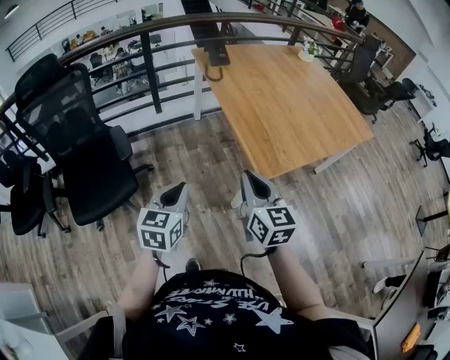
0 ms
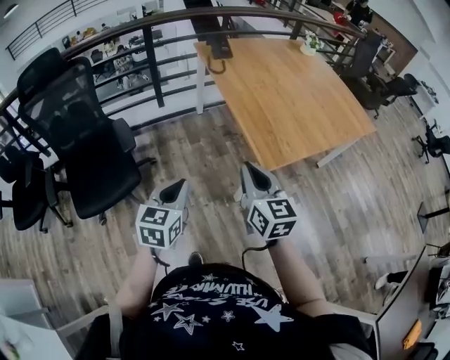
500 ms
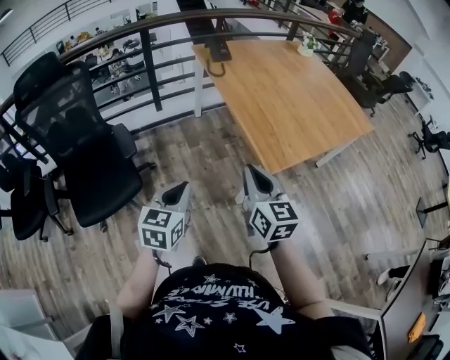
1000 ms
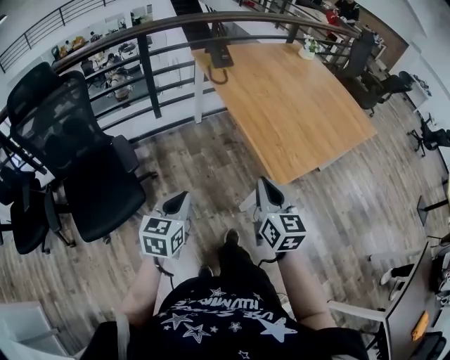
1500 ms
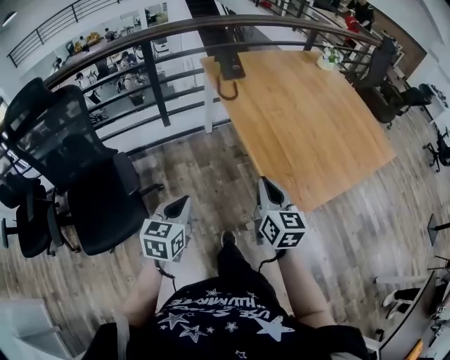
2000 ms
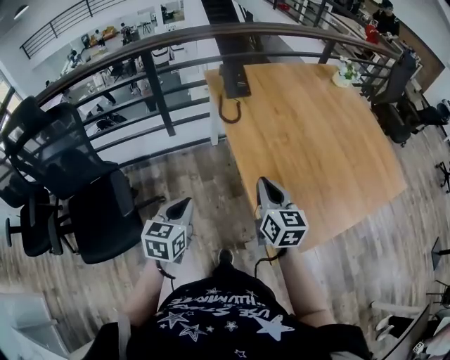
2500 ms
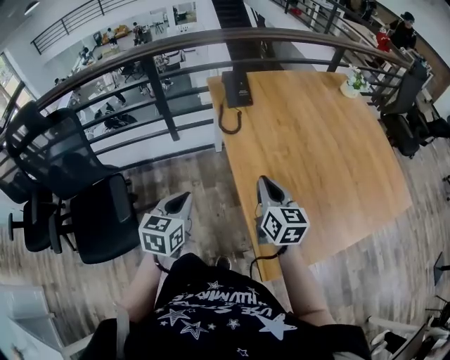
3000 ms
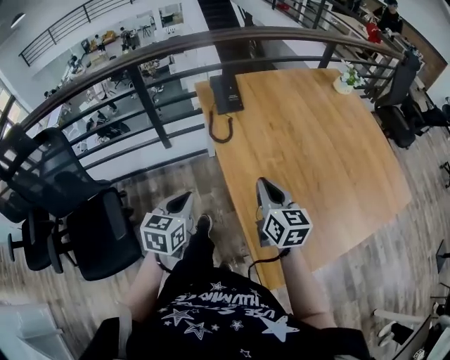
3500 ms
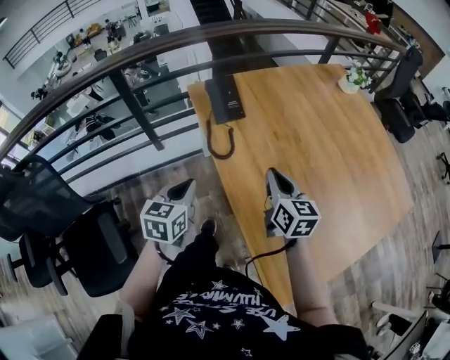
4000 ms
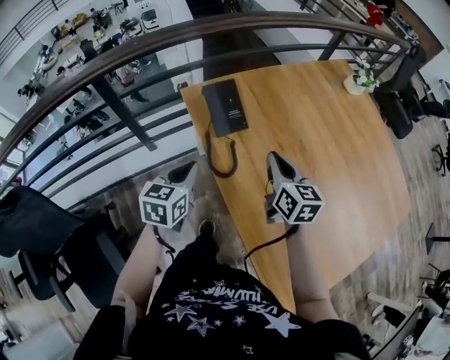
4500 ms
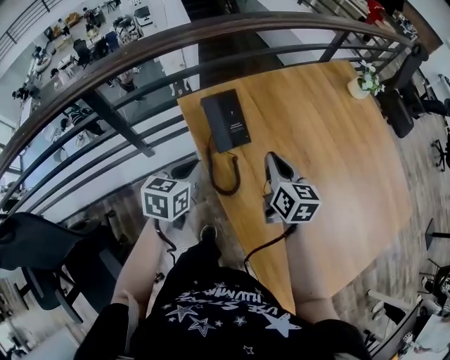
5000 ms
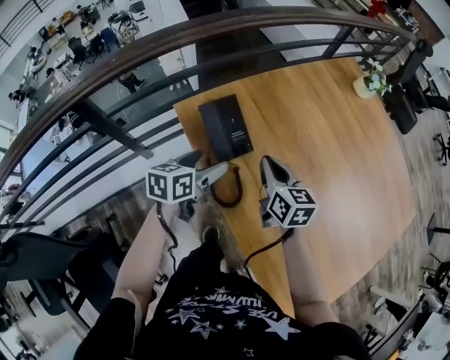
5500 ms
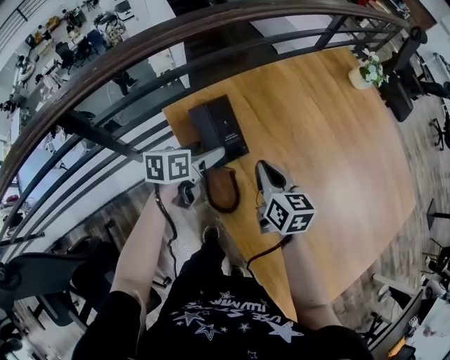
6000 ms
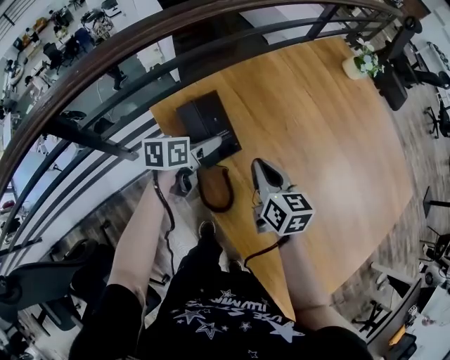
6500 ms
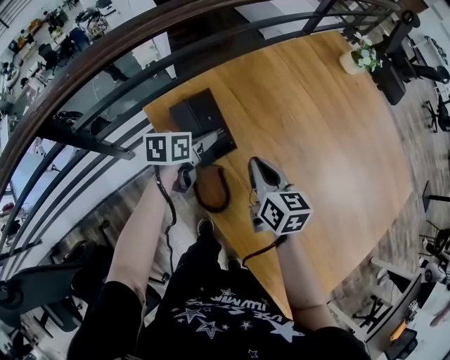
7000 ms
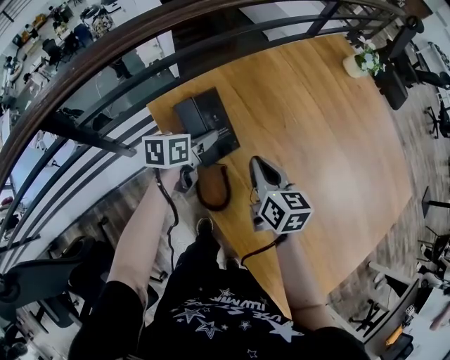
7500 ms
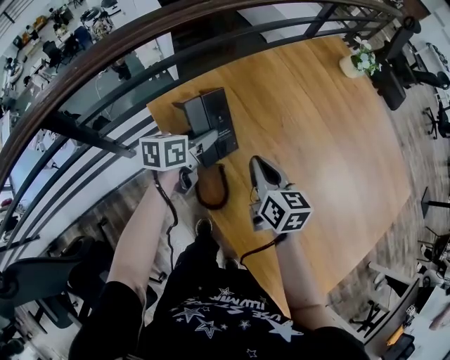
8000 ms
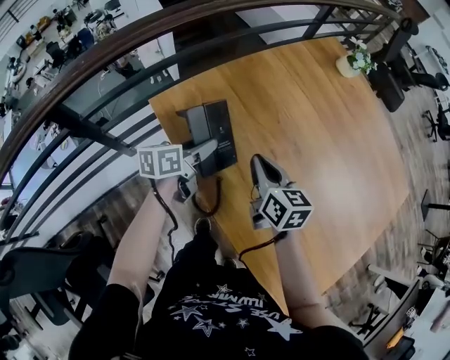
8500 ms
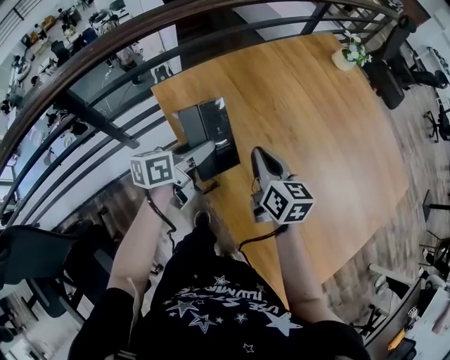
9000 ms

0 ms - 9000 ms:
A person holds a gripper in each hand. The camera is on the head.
0 ms - 2000 ms: The grippers both shift forward by approximately 15 cm.
2000 ms - 4500 ms: The pair of grippers is taken forward, approximately 50 cm.
4500 ms - 7000 ms: The right gripper shifts about 10 cm forward and downward. Meanwhile the left gripper is displaced forward and downward by approximately 25 cm, rotates some 30 degrees, and opens.
7000 ms - 9000 ms: The right gripper moves backward, roughly 5 cm. Meanwhile the left gripper travels backward and upward by roughly 15 cm, and rotates about 20 degrees.

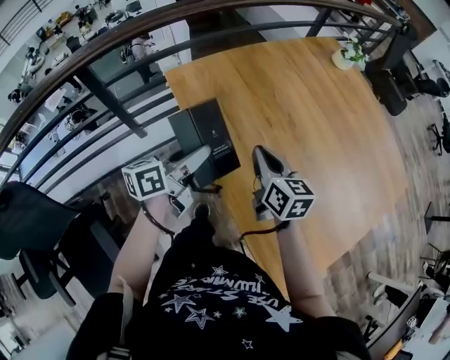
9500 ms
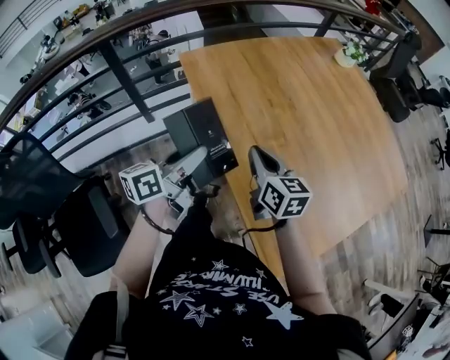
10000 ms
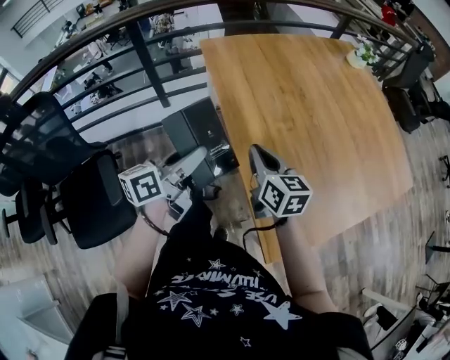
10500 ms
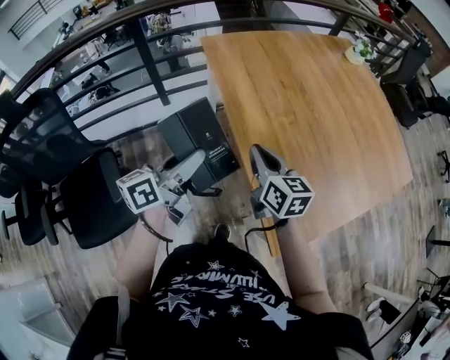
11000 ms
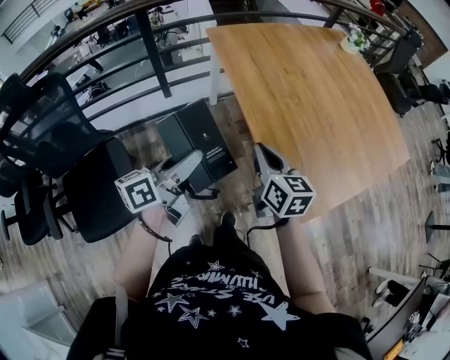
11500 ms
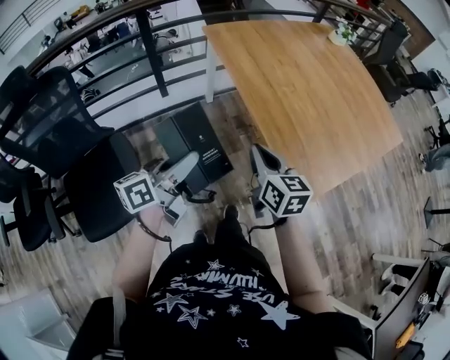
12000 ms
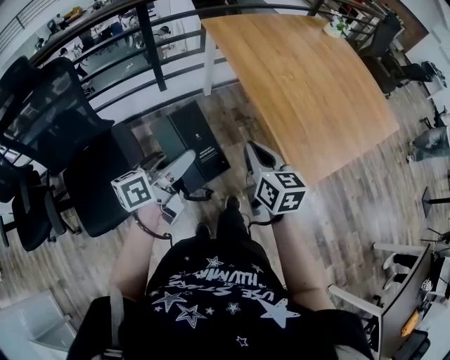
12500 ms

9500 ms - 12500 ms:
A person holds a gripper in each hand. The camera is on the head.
9500 ms - 11000 ms: Both grippers move backward, roughly 25 cm.
11000 ms - 12500 ms: Both grippers move backward, about 20 cm.

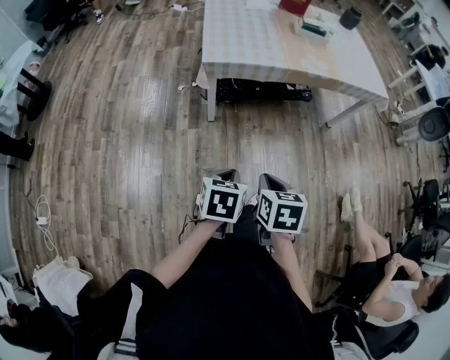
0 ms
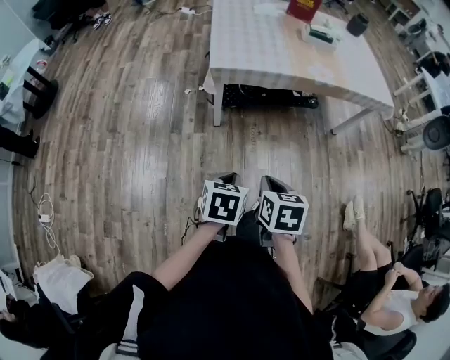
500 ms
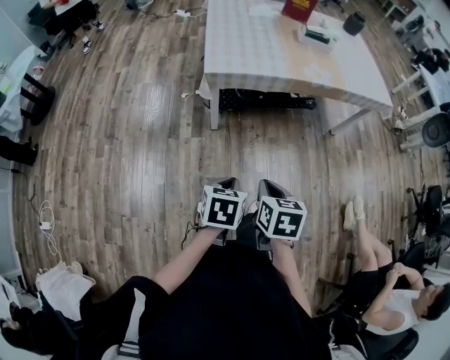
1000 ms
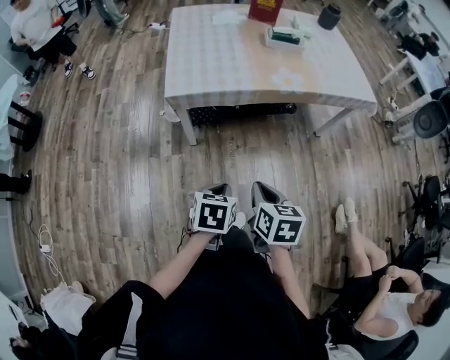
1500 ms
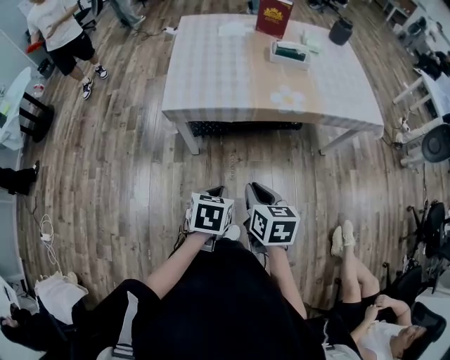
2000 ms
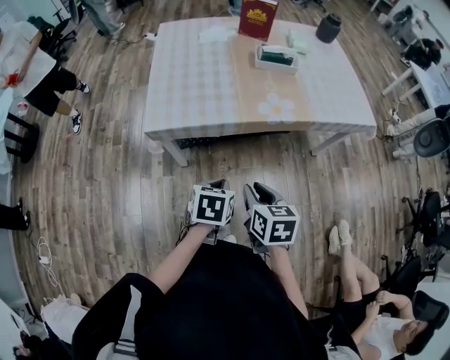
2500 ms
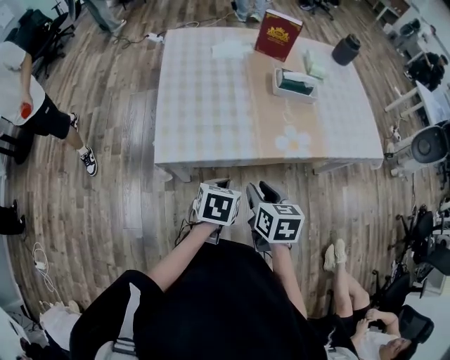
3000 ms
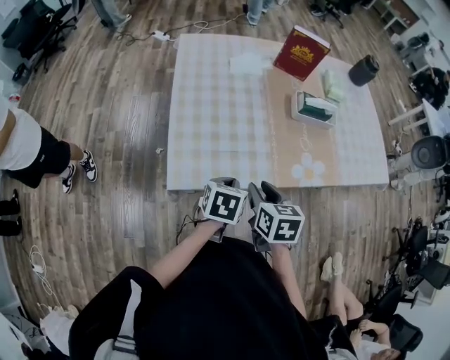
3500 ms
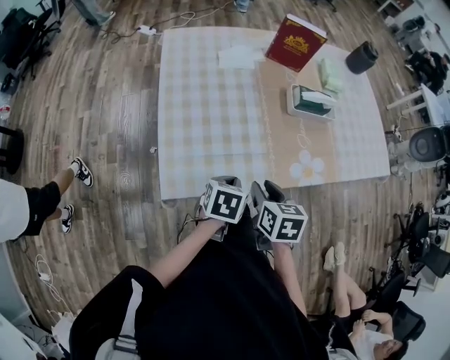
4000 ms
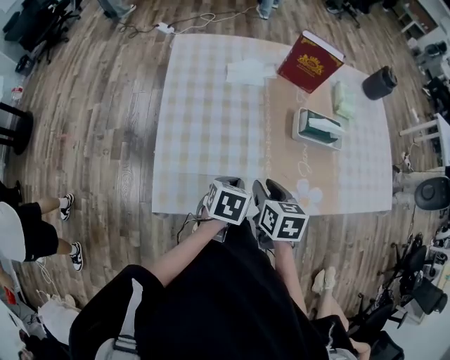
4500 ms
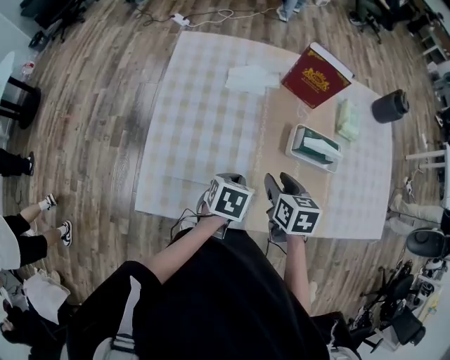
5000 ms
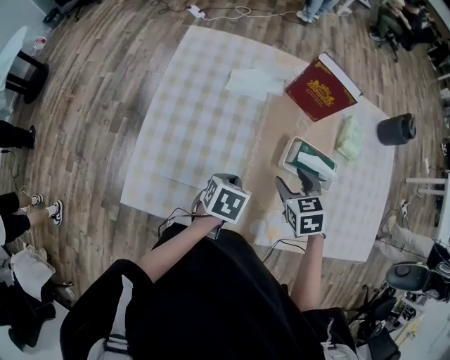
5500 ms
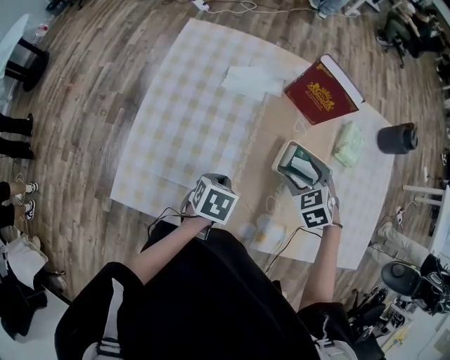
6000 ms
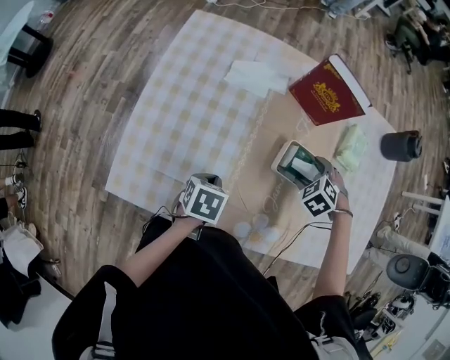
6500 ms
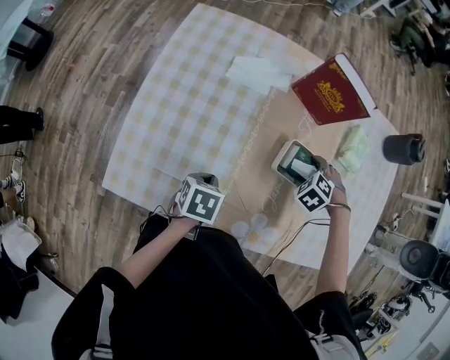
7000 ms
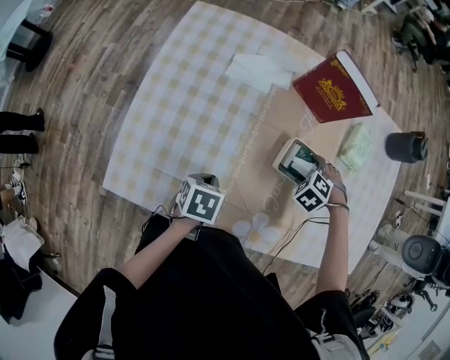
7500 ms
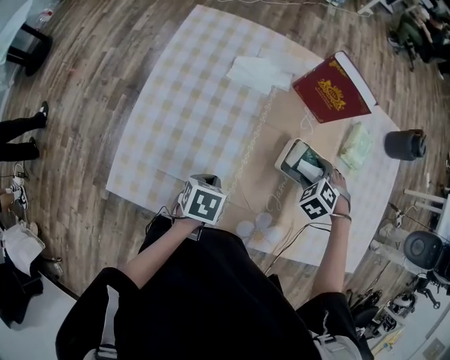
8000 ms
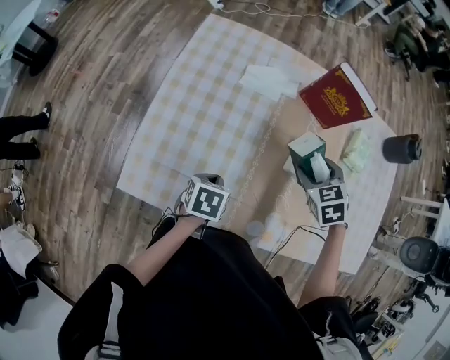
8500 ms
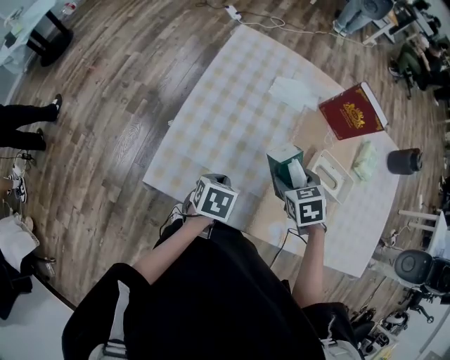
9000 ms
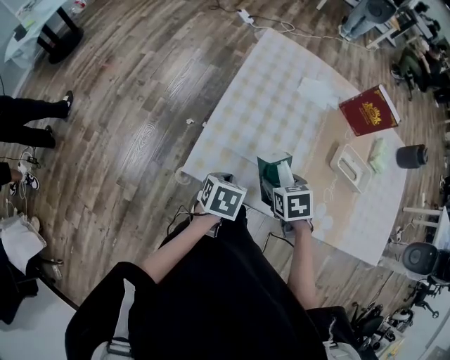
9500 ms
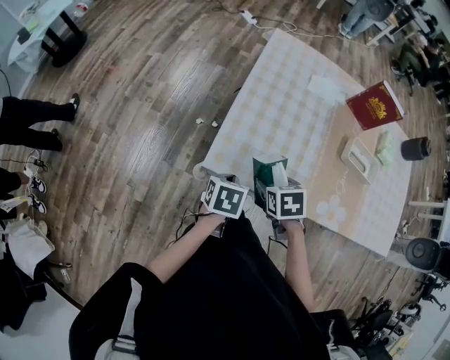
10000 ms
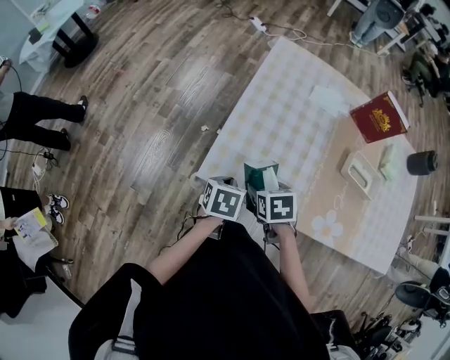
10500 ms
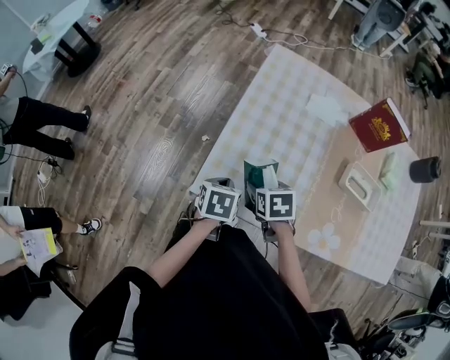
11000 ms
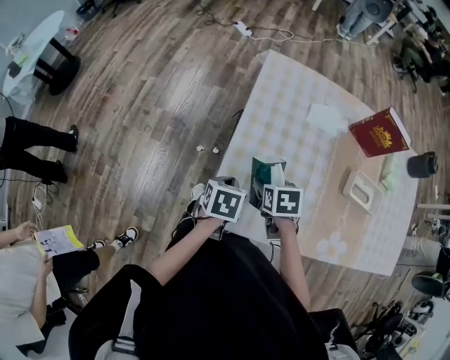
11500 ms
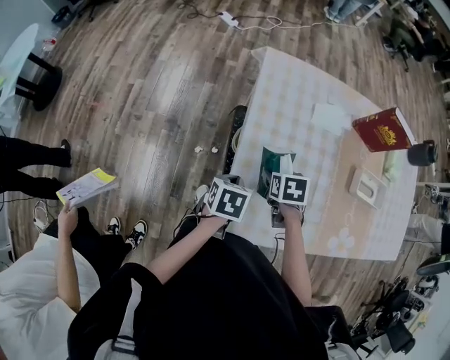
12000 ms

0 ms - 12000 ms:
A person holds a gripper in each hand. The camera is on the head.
0 ms - 2000 ms: Both grippers travel together forward and to the right, roughly 25 cm.
2000 ms - 4000 ms: Both grippers travel together forward, approximately 40 cm.
4000 ms - 6000 ms: The left gripper moves forward and to the right, some 20 cm. Meanwhile the right gripper travels forward and to the right by about 35 cm, rolls counterclockwise, seen from behind, by some 70 degrees, and opens.
6000 ms - 8000 ms: The right gripper shifts roughly 5 cm downward, and rotates approximately 20 degrees.
8000 ms - 10000 ms: The right gripper moves about 50 cm, and rolls clockwise, seen from behind, by roughly 40 degrees. The left gripper changes place by some 30 cm.
10000 ms - 12000 ms: The right gripper ends up roughly 25 cm from where it was, and turns by roughly 20 degrees. Meanwhile the left gripper moves roughly 25 cm.

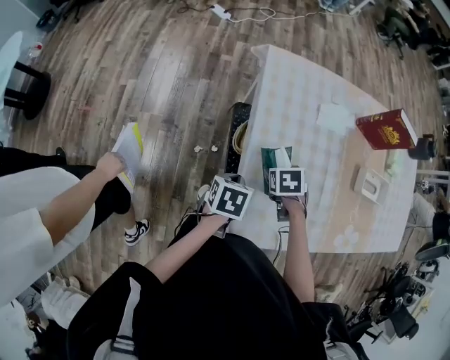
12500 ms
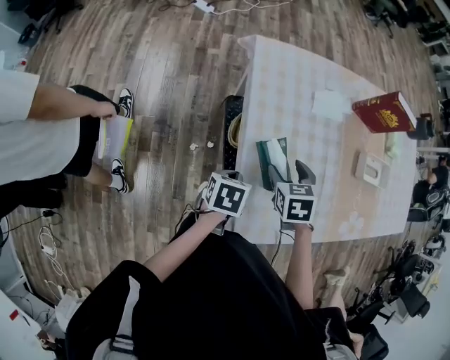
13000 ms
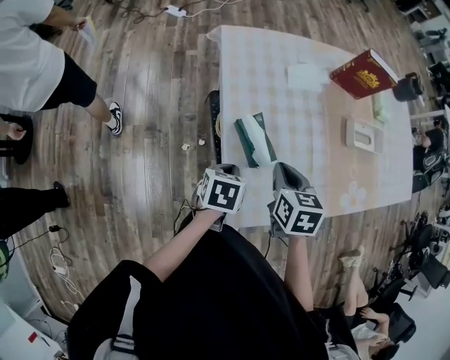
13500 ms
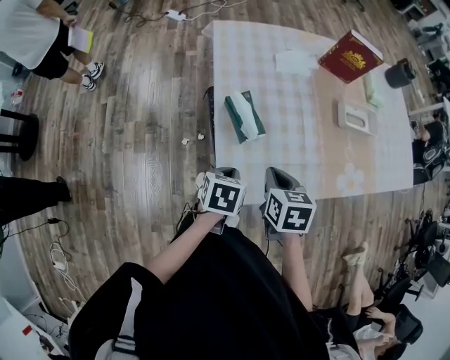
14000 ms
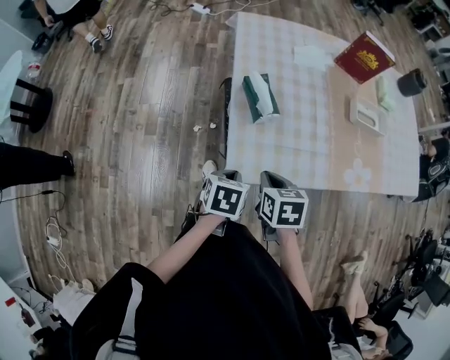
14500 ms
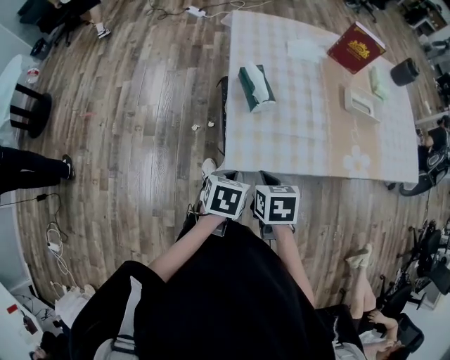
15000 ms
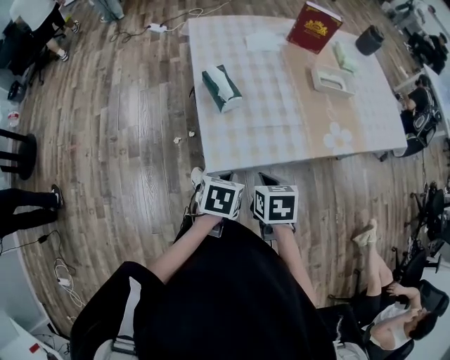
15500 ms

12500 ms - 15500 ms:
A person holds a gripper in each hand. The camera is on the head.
12500 ms - 14000 ms: The right gripper moves roughly 20 cm, turns by roughly 30 degrees, and closes its fingers. The left gripper shifts by about 15 cm.
14000 ms - 15500 ms: The right gripper moves backward, approximately 15 cm; the left gripper shifts roughly 15 cm backward and to the right.
